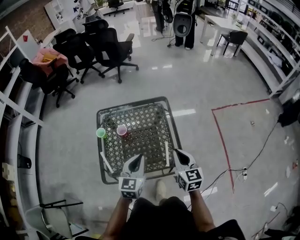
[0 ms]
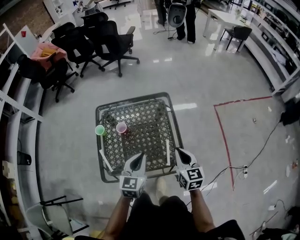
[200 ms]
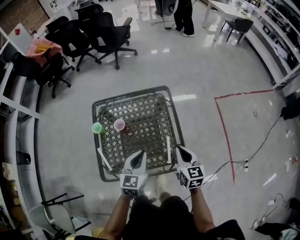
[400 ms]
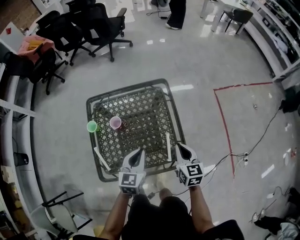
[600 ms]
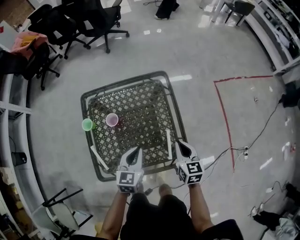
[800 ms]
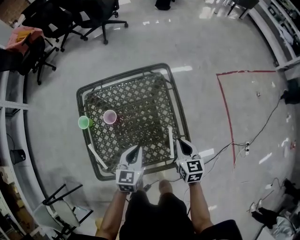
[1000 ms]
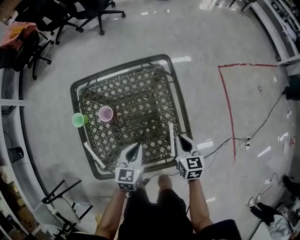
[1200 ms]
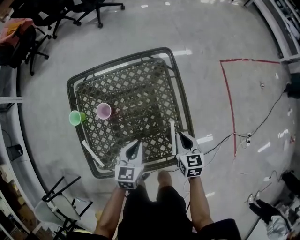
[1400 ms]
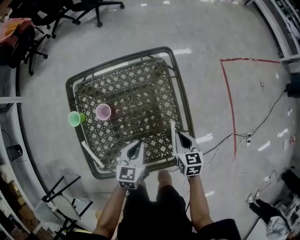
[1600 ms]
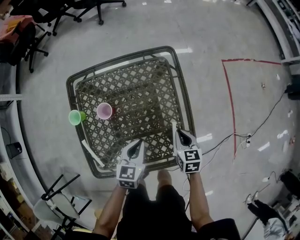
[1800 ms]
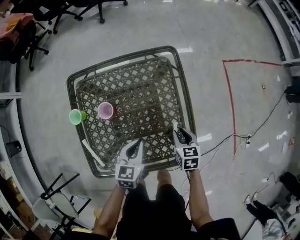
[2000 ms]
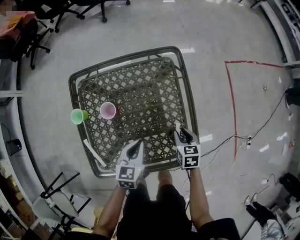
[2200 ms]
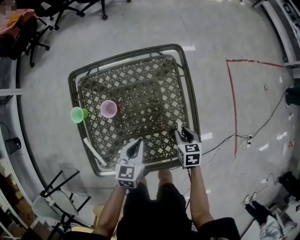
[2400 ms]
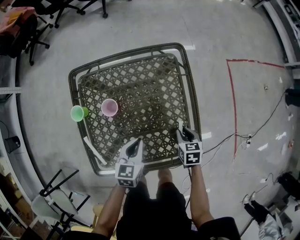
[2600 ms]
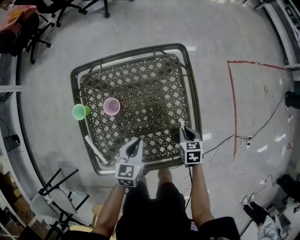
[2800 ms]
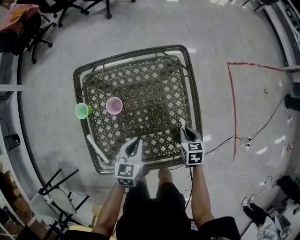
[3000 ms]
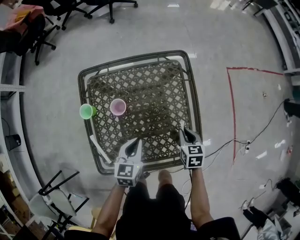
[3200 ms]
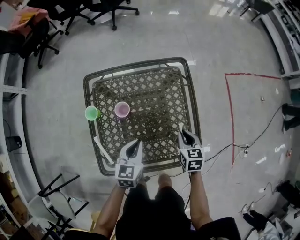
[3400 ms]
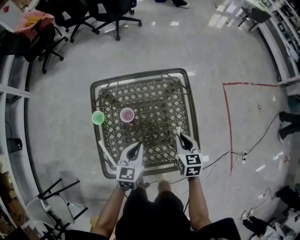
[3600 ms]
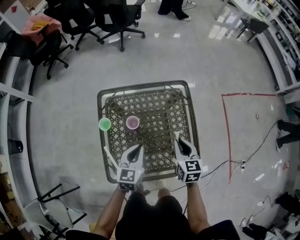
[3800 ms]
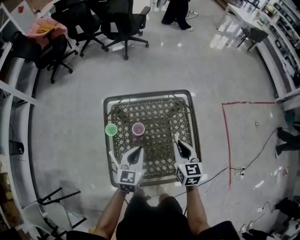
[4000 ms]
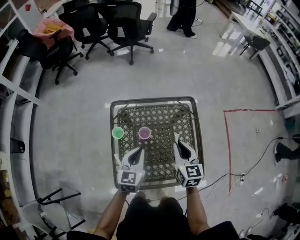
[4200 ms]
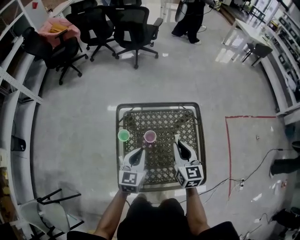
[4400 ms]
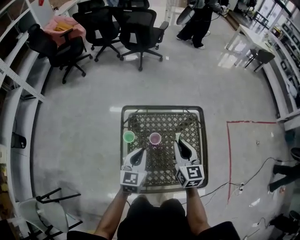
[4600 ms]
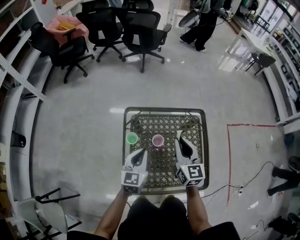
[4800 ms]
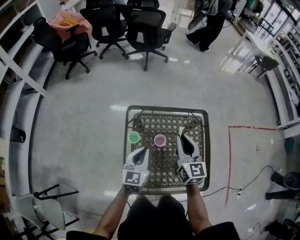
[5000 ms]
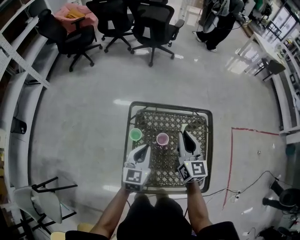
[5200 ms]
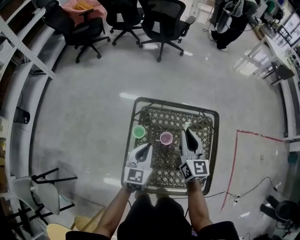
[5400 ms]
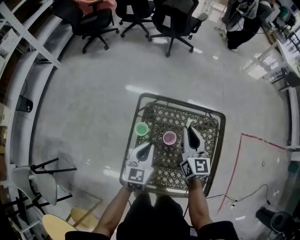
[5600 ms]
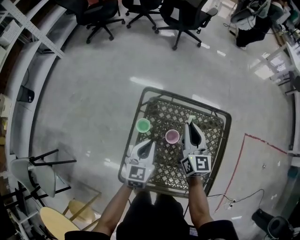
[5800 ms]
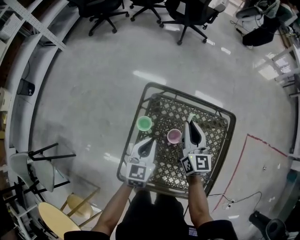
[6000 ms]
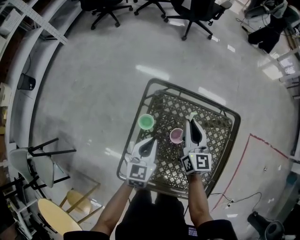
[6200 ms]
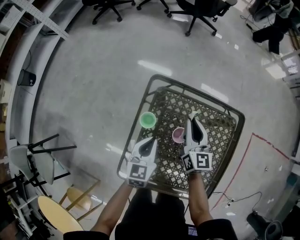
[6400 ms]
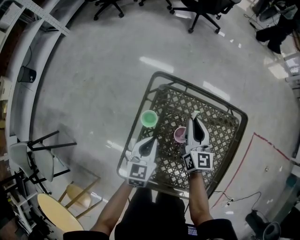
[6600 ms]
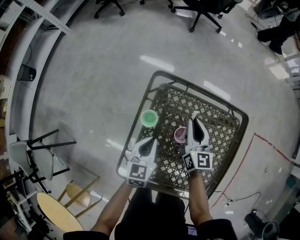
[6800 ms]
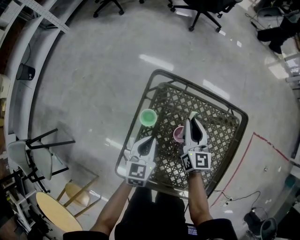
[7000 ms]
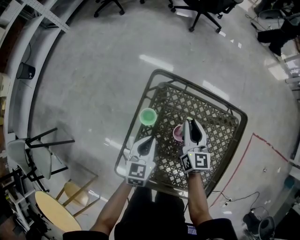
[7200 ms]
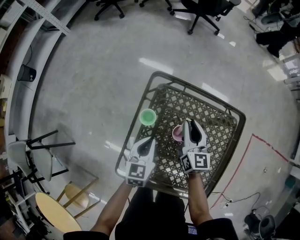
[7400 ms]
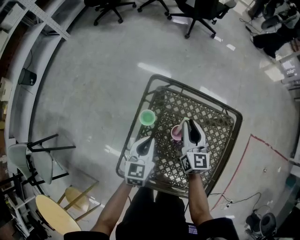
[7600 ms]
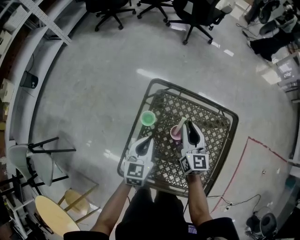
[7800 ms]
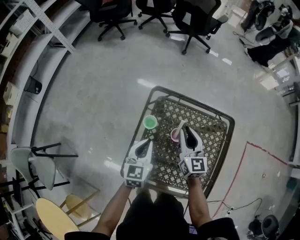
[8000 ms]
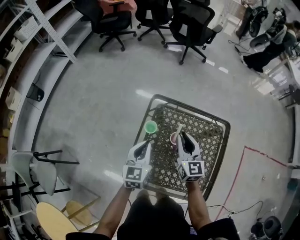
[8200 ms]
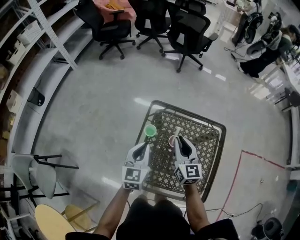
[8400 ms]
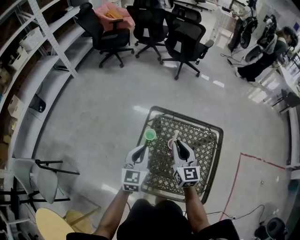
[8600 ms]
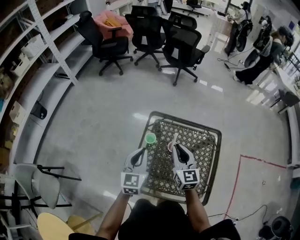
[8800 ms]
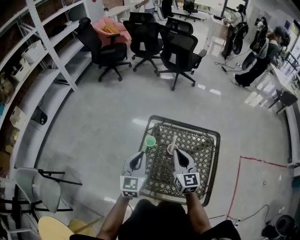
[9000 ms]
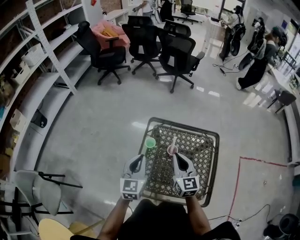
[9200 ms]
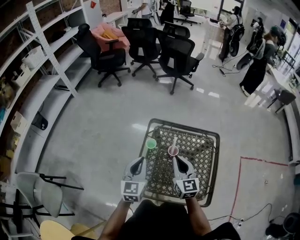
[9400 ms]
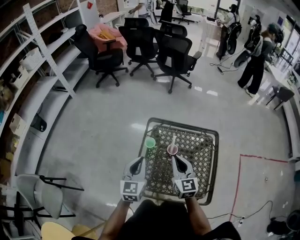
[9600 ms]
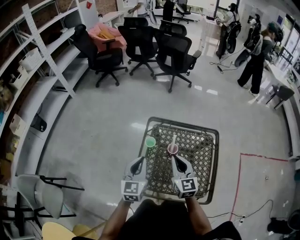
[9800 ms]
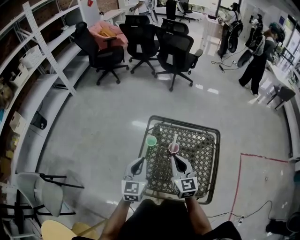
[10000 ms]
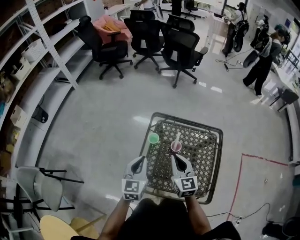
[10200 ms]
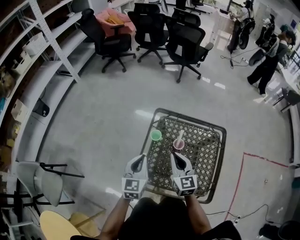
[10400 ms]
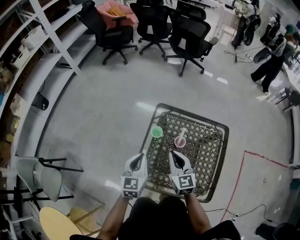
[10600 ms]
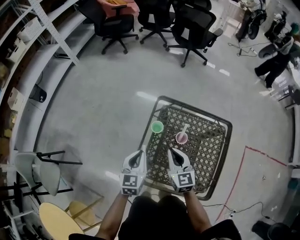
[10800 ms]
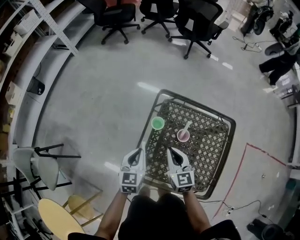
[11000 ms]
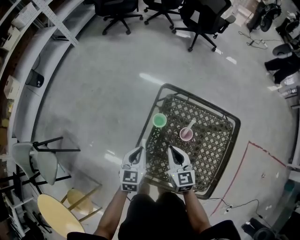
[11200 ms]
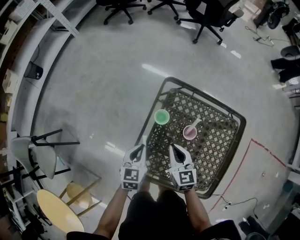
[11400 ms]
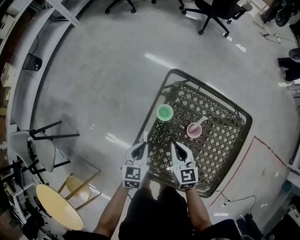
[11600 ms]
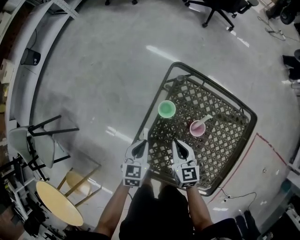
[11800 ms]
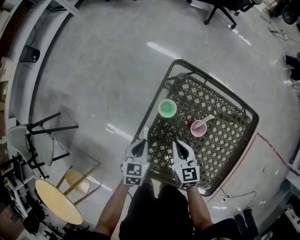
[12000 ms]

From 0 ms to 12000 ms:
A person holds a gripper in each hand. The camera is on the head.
From 0 ms to 1600 ms: Both grippers travel together downward, approximately 25 cm. The right gripper turns by approximately 30 degrees. The left gripper turns by approximately 20 degrees.
From 1600 ms to 3000 ms: The left gripper travels to the left by approximately 5 cm; the right gripper is displaced downward by roughly 5 cm.
From 3000 ms to 4400 ms: Both grippers move upward and to the left, roughly 30 cm. The left gripper turns by approximately 20 degrees, while the right gripper points its fingers roughly 40 degrees further upward.
From 4400 ms to 6000 ms: The right gripper is displaced forward, to the left and downward by approximately 20 cm. The left gripper shifts about 15 cm downward, forward and to the left.
From 6000 ms to 7600 ms: The right gripper moves downward, roughly 5 cm.
From 7600 ms to 9000 ms: The left gripper shifts roughly 25 cm upward. Meanwhile the right gripper shifts approximately 25 cm upward and backward.
From 9000 ms to 10400 ms: The right gripper changes place by roughly 5 cm. The left gripper shifts by some 5 cm.
From 10400 ms to 12000 ms: Both grippers travel together downward, some 25 cm. The right gripper turns by approximately 20 degrees, while the left gripper swivels roughly 30 degrees.

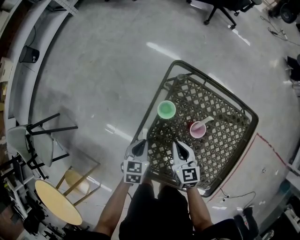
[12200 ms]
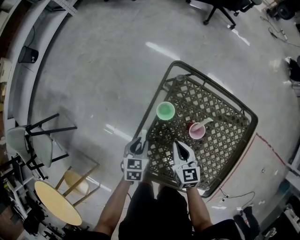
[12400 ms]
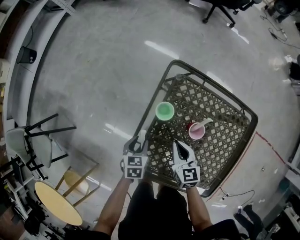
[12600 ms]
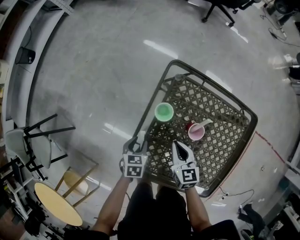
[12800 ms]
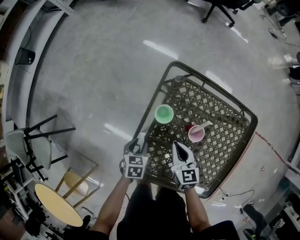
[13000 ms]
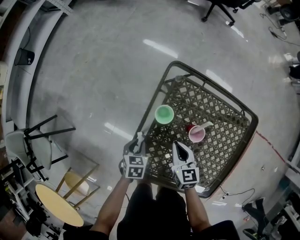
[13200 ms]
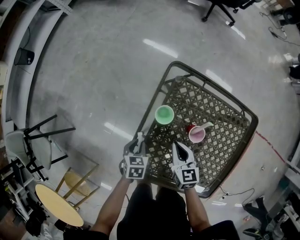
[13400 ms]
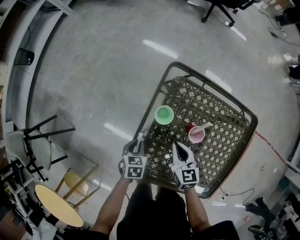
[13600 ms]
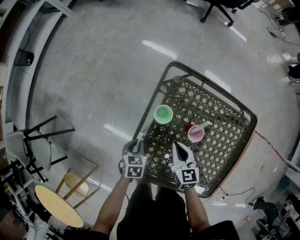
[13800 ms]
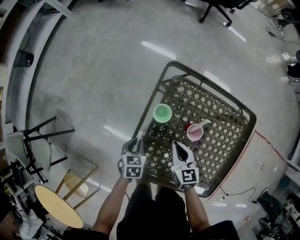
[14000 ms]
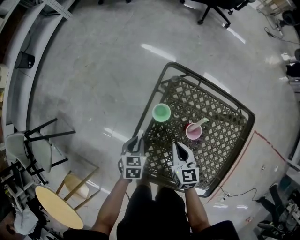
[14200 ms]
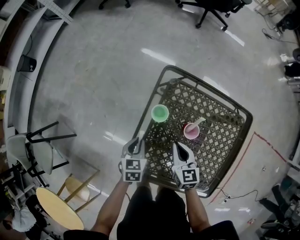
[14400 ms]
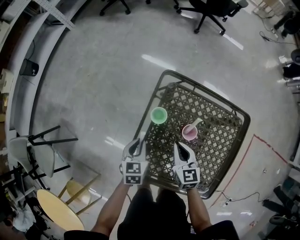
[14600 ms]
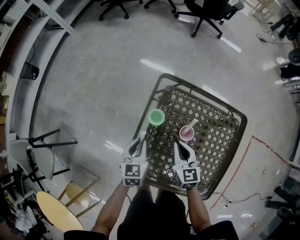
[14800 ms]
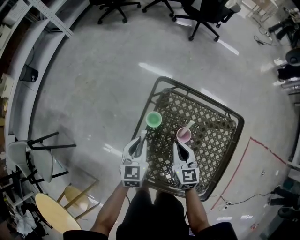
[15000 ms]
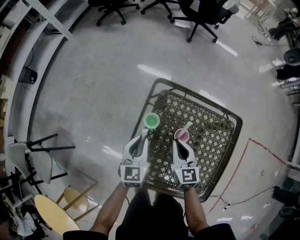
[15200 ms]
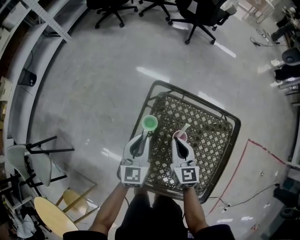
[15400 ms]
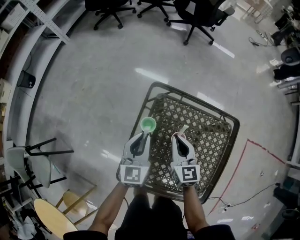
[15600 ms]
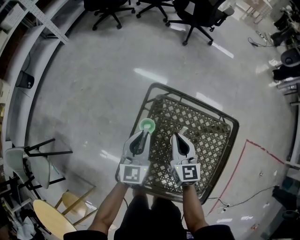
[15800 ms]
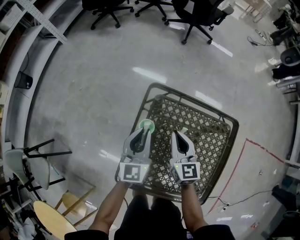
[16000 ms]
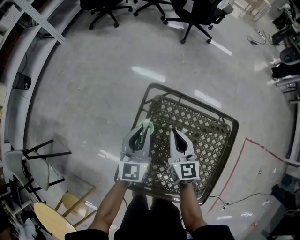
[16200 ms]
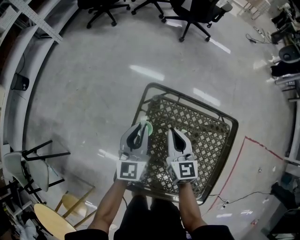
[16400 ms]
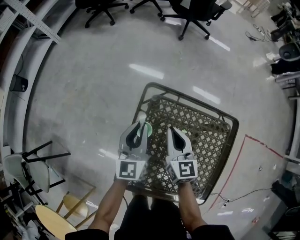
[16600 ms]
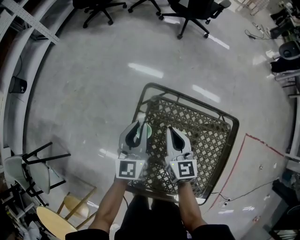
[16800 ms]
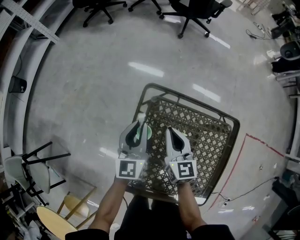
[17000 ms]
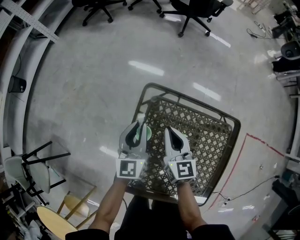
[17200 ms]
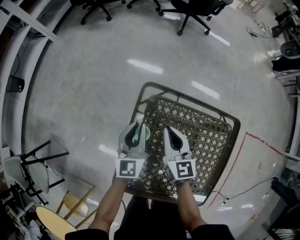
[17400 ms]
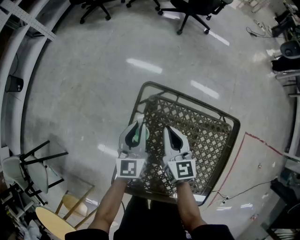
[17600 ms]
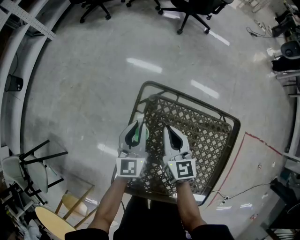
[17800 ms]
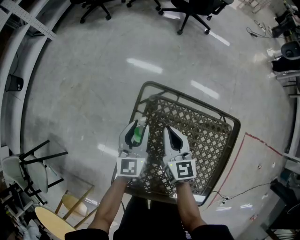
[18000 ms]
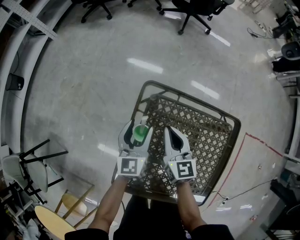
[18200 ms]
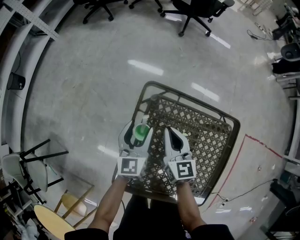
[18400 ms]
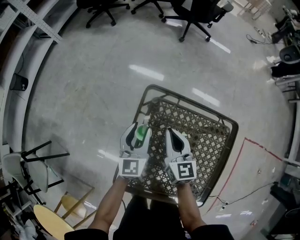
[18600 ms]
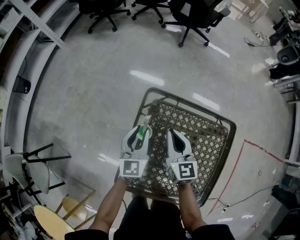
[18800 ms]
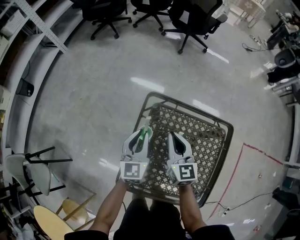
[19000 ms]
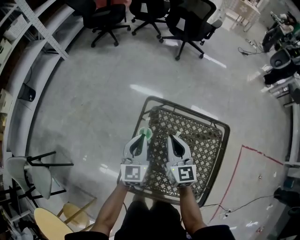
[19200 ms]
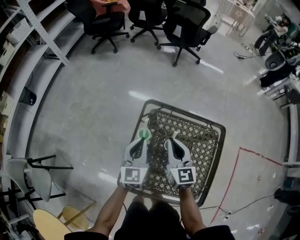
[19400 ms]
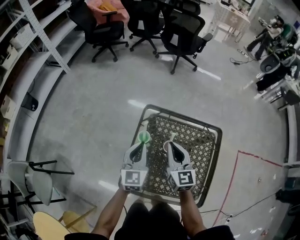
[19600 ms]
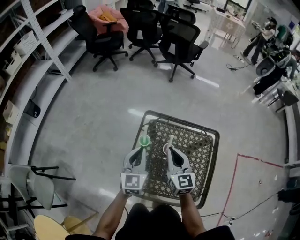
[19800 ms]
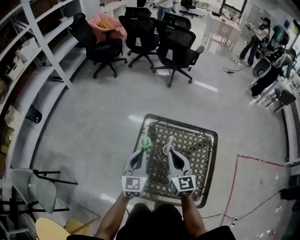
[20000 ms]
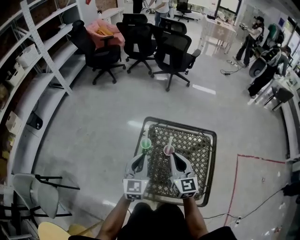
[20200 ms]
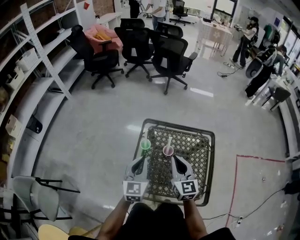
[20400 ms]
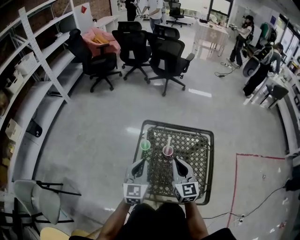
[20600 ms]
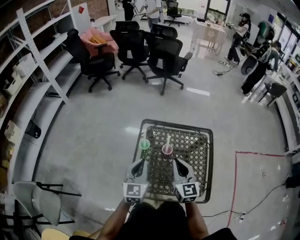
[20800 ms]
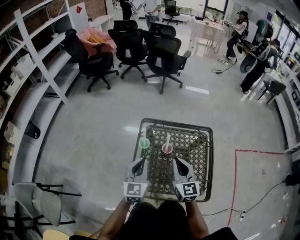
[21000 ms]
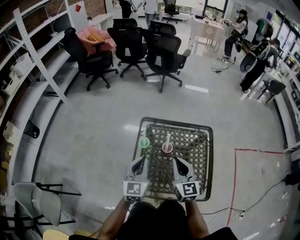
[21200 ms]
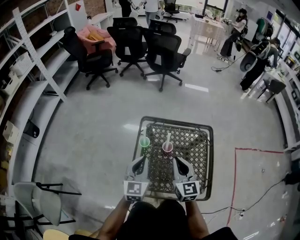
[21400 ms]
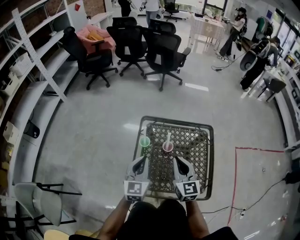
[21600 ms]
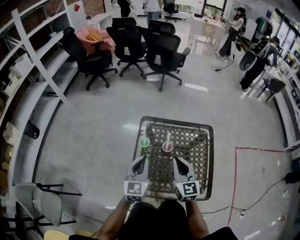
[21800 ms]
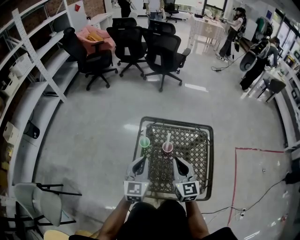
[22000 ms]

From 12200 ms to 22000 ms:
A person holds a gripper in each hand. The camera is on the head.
From 12200 ms to 13600 ms: The left gripper moves downward, some 5 cm, and opens, then closes once more.
From 13600 ms to 15000 ms: The left gripper moves upward, approximately 15 cm, and tips its fingers upward by some 30 degrees, while the right gripper moves upward, approximately 10 cm.
From 15000 ms to 16400 ms: The left gripper shifts roughly 15 cm forward and upward, and rotates roughly 20 degrees, while the right gripper is displaced forward by approximately 10 cm.
From 16400 ms to 17800 ms: The left gripper travels downward by approximately 5 cm.
From 17800 ms to 19200 ms: The two grippers go roughly 10 cm upward and backward. The left gripper opens, then closes once more.
From 19200 ms to 20600 ms: Both grippers travel together backward and upward, roughly 20 cm.
From 20600 ms to 22000 ms: Both grippers stay about where they are.

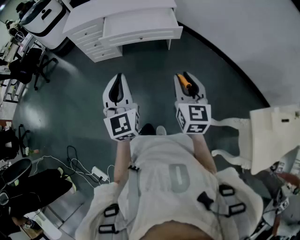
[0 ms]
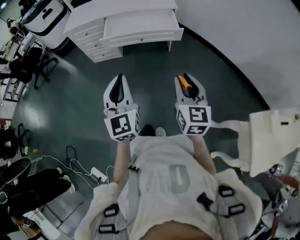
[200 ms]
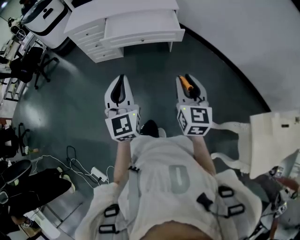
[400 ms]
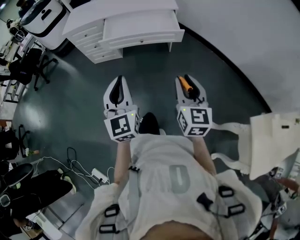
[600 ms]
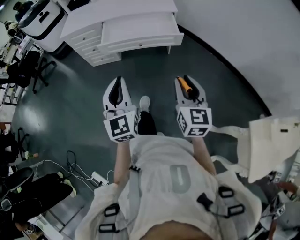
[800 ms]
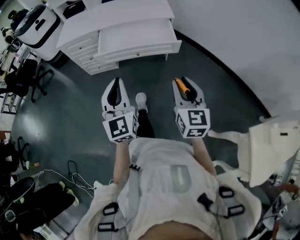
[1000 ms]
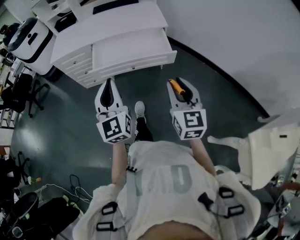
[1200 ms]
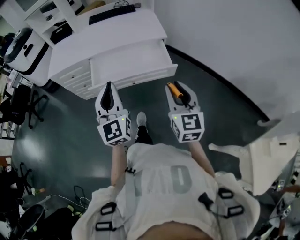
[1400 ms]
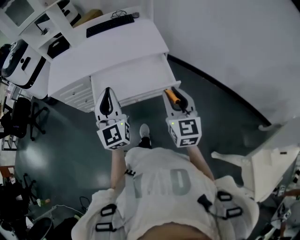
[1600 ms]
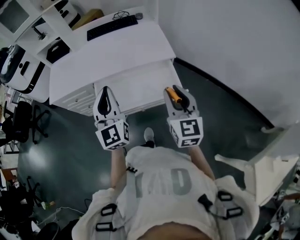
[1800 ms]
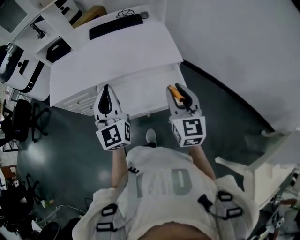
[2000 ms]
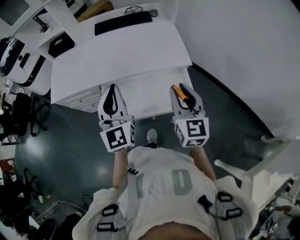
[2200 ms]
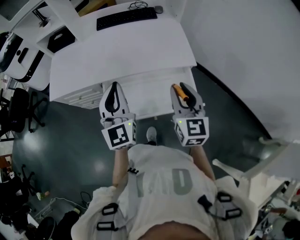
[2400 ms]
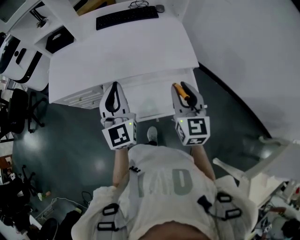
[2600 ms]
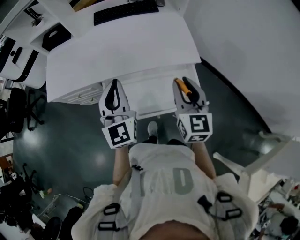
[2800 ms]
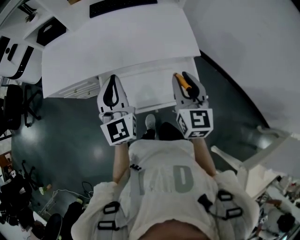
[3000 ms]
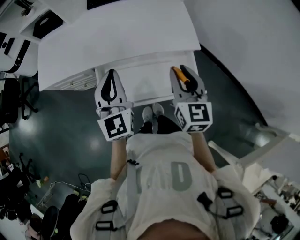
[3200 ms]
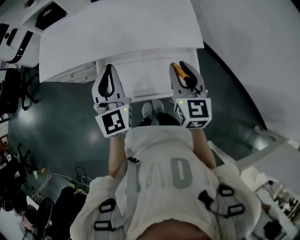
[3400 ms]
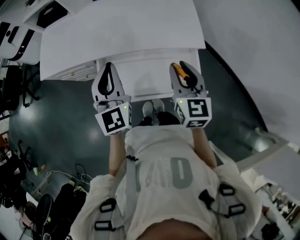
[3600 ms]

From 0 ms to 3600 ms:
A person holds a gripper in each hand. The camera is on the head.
From 0 ms to 1800 ms: Both grippers travel together forward, about 40 cm.
From 1800 ms to 3600 ms: The two grippers go approximately 15 cm forward.
